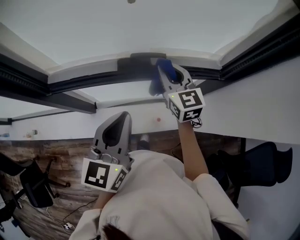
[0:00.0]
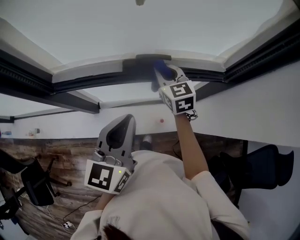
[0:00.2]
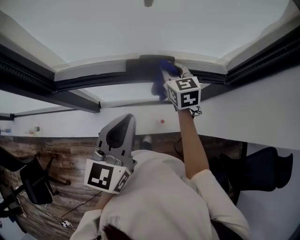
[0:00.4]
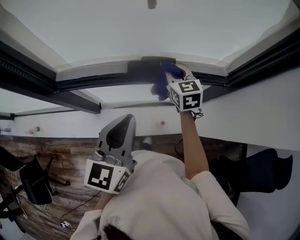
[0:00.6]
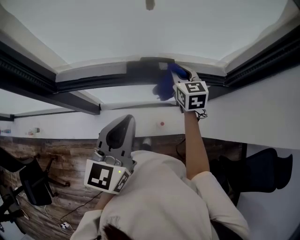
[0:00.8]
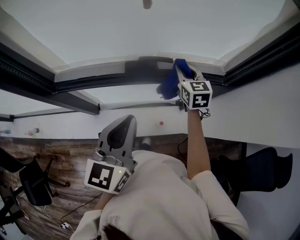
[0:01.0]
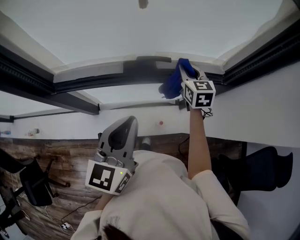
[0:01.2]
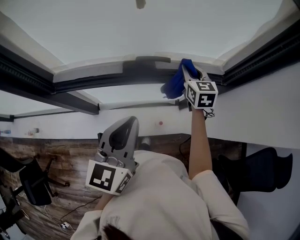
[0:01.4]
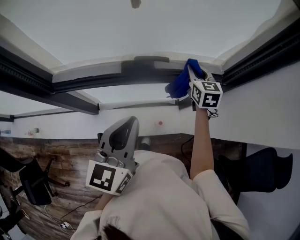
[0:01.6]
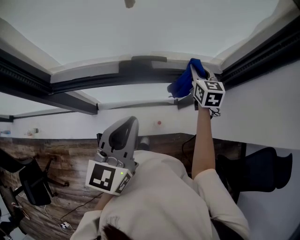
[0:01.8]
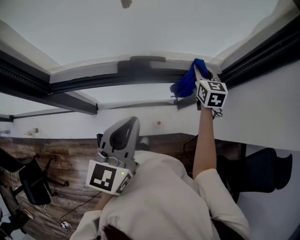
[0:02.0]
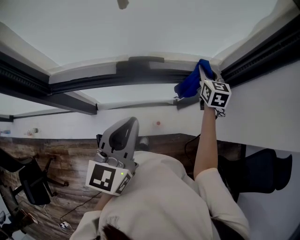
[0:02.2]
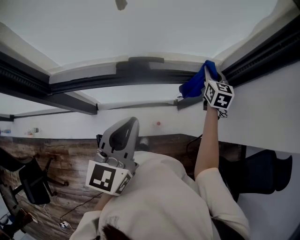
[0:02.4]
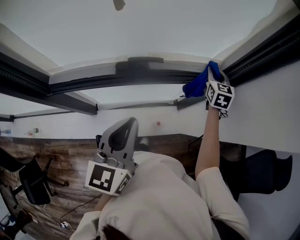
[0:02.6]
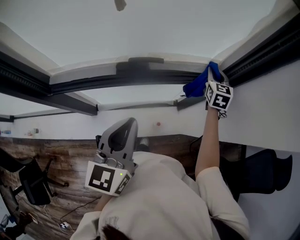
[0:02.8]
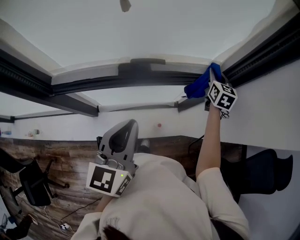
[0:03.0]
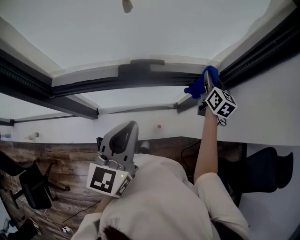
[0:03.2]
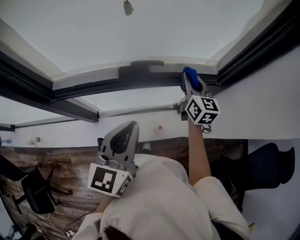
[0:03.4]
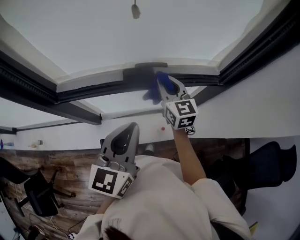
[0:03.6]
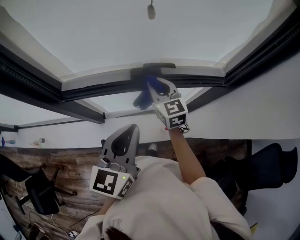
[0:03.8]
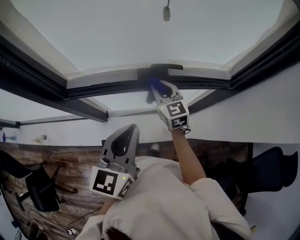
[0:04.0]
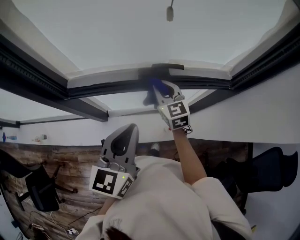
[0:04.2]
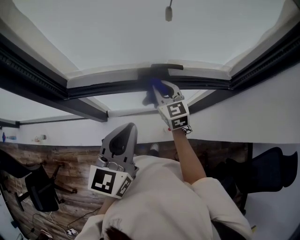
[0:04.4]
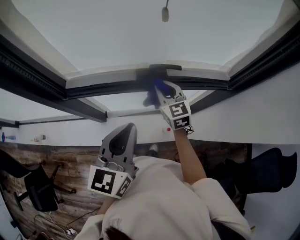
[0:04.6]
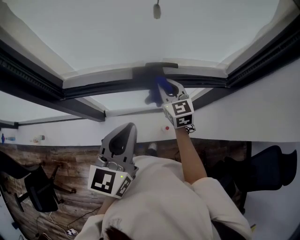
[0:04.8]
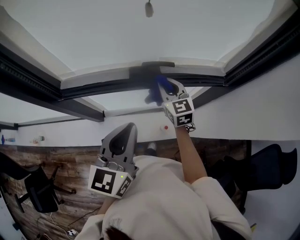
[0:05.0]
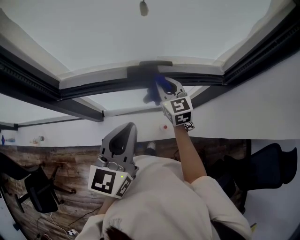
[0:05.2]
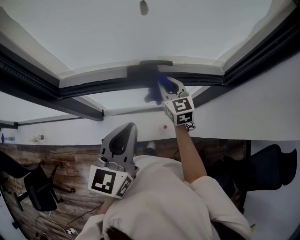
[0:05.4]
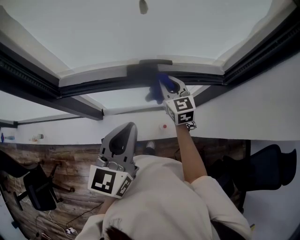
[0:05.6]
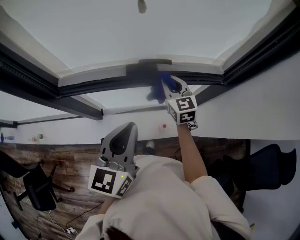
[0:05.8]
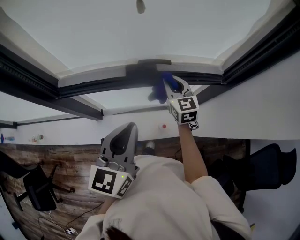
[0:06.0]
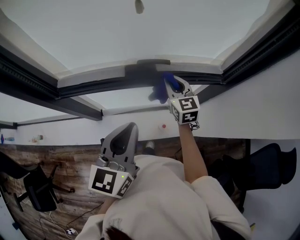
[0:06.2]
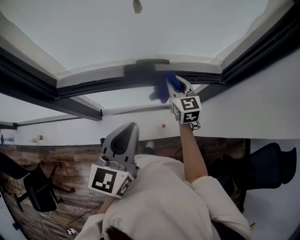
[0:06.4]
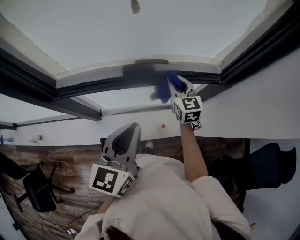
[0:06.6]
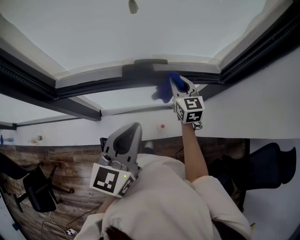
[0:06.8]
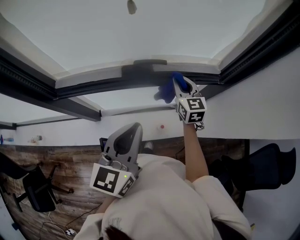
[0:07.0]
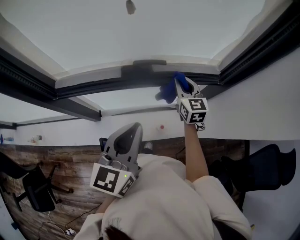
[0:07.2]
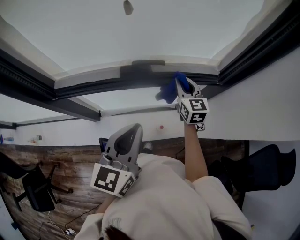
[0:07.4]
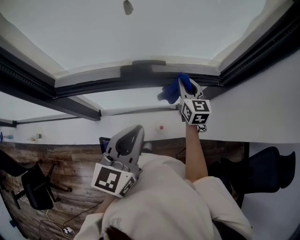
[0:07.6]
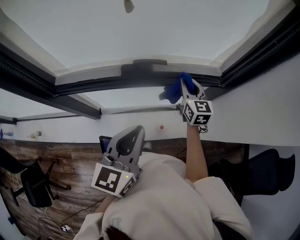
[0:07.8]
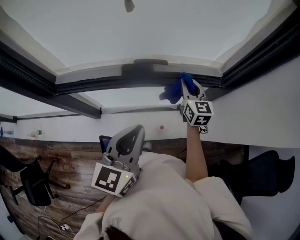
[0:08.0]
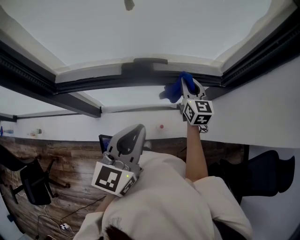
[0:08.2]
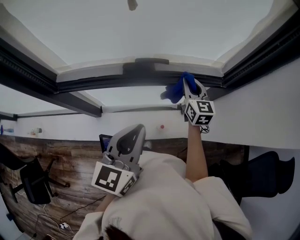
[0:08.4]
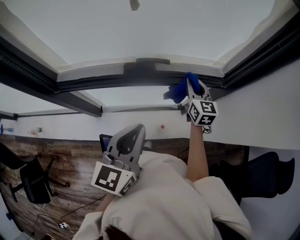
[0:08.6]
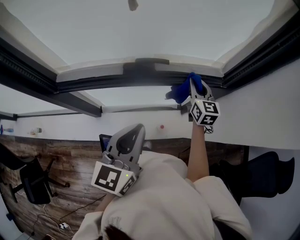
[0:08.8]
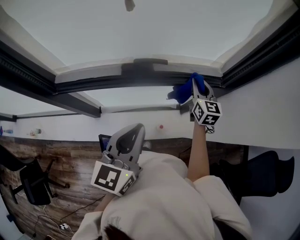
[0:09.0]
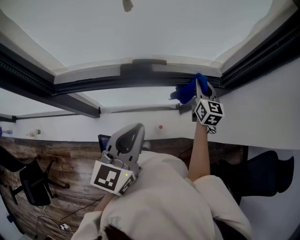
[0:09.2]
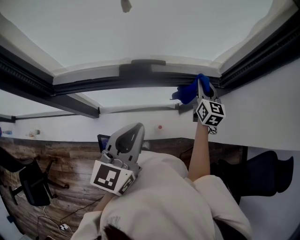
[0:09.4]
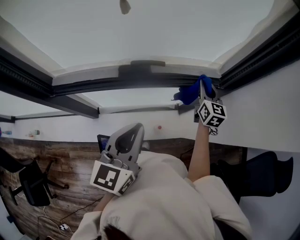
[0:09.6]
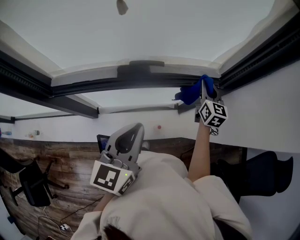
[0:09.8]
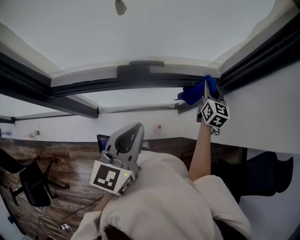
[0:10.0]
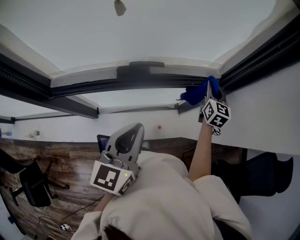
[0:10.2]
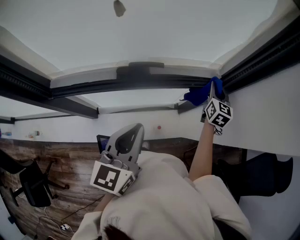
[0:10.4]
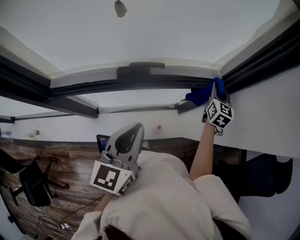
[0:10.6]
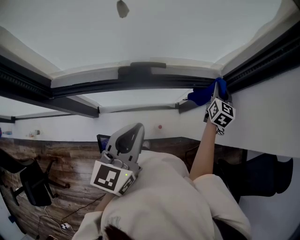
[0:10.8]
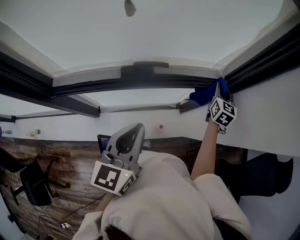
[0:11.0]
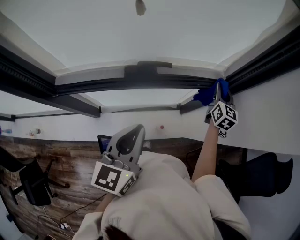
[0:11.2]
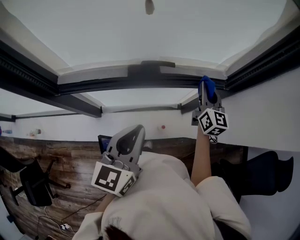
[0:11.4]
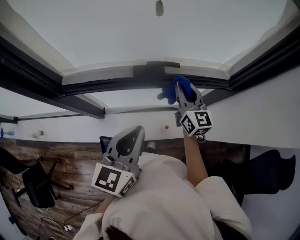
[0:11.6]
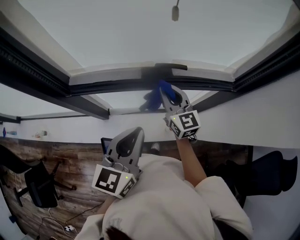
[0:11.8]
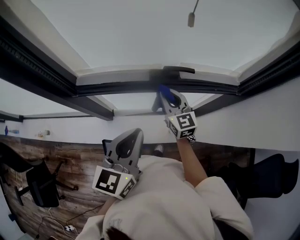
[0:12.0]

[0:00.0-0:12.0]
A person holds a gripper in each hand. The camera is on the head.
0:00.0 to 0:01.6: The right gripper goes about 15 cm to the right and forward.
0:01.6 to 0:03.0: The right gripper goes about 10 cm to the right.
0:03.0 to 0:04.4: The left gripper heads to the left, covering about 10 cm. The right gripper heads to the left, covering approximately 30 cm, and turns by approximately 30 degrees.
0:04.4 to 0:06.0: The right gripper travels to the right by approximately 10 cm.
0:06.0 to 0:07.6: The right gripper travels to the right by approximately 10 cm.
0:07.6 to 0:09.0: The right gripper moves to the right, some 5 cm.
0:09.0 to 0:10.4: The right gripper is displaced to the right by approximately 10 cm.
0:10.4 to 0:12.0: The left gripper moves to the left, roughly 10 cm, while the right gripper is displaced to the left by approximately 35 cm, and changes its angle by roughly 40 degrees.

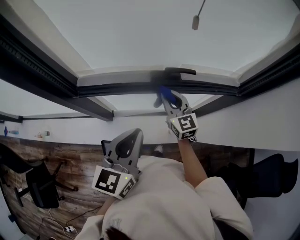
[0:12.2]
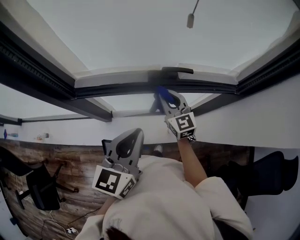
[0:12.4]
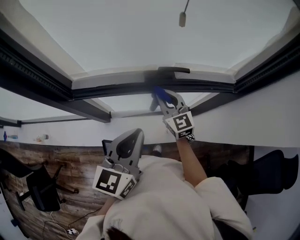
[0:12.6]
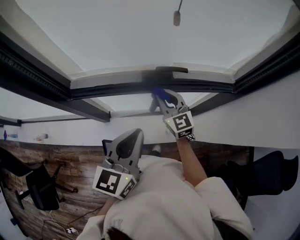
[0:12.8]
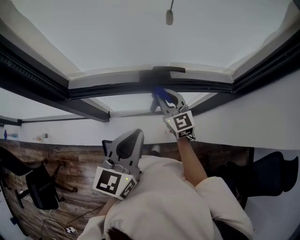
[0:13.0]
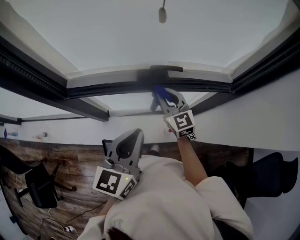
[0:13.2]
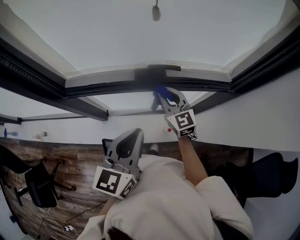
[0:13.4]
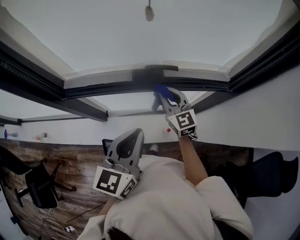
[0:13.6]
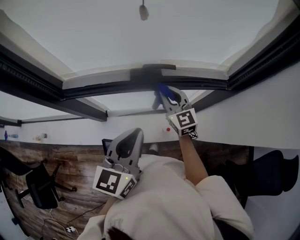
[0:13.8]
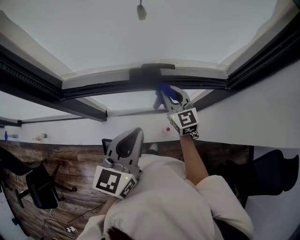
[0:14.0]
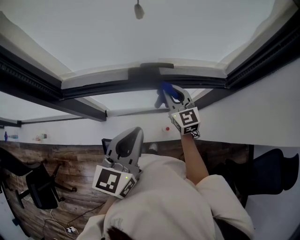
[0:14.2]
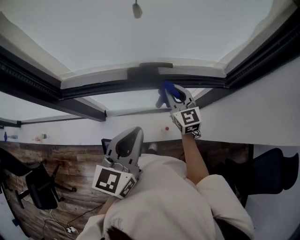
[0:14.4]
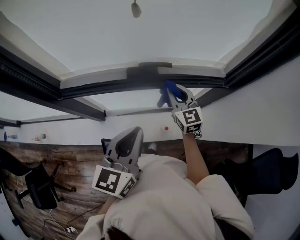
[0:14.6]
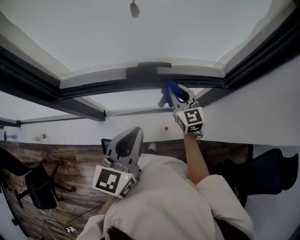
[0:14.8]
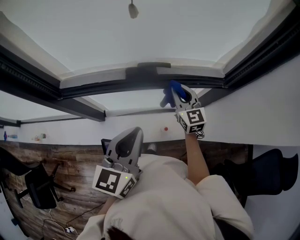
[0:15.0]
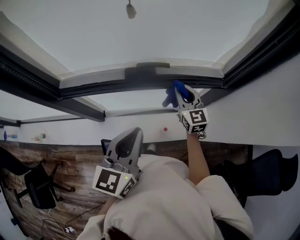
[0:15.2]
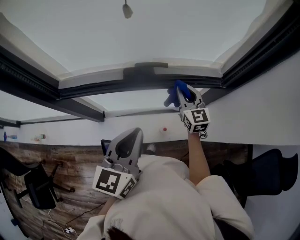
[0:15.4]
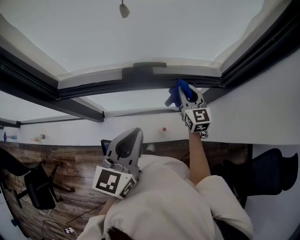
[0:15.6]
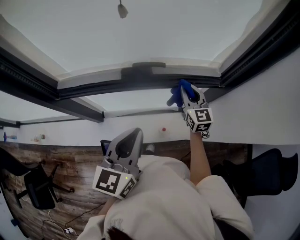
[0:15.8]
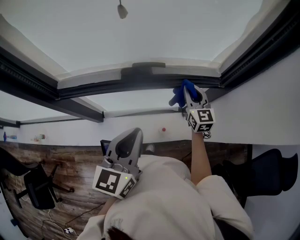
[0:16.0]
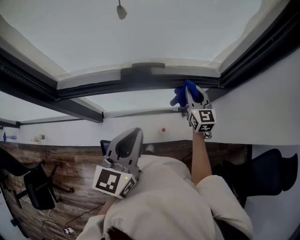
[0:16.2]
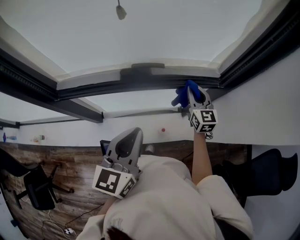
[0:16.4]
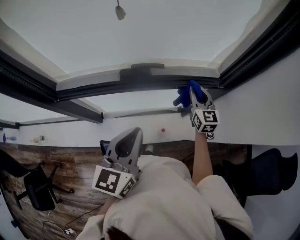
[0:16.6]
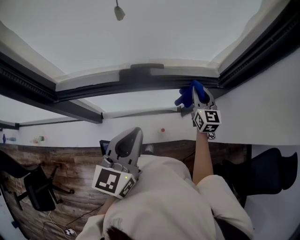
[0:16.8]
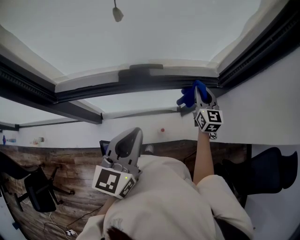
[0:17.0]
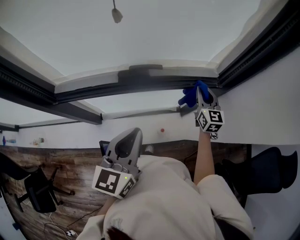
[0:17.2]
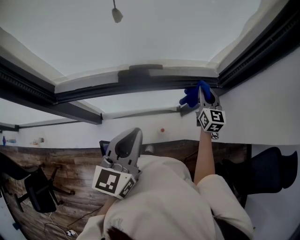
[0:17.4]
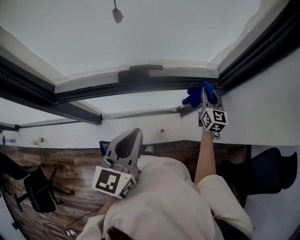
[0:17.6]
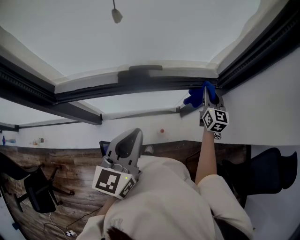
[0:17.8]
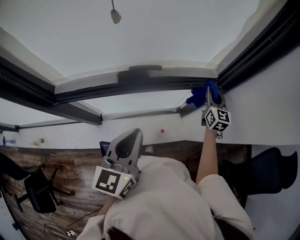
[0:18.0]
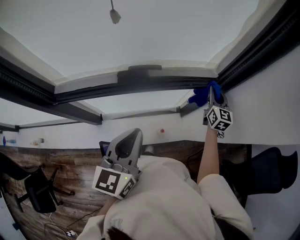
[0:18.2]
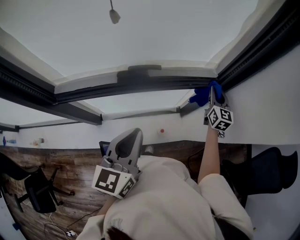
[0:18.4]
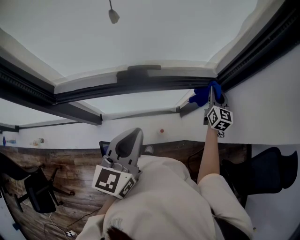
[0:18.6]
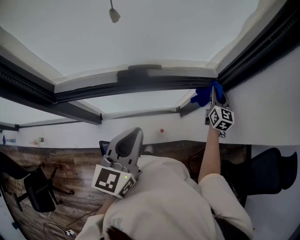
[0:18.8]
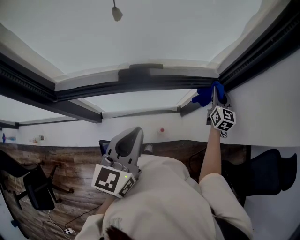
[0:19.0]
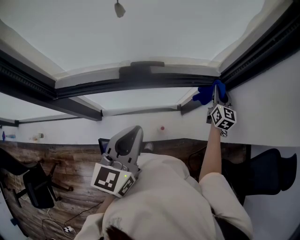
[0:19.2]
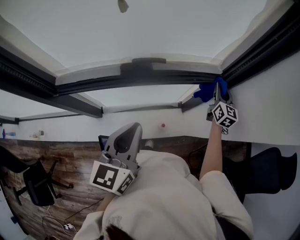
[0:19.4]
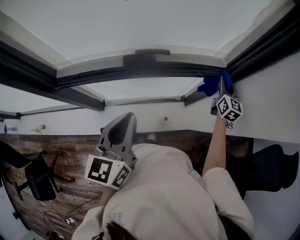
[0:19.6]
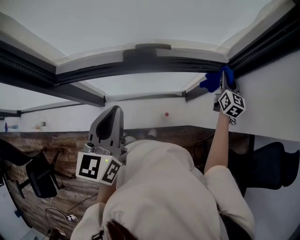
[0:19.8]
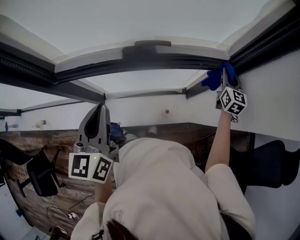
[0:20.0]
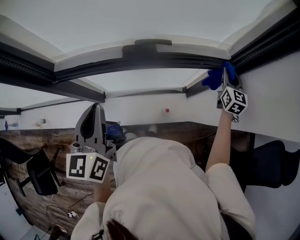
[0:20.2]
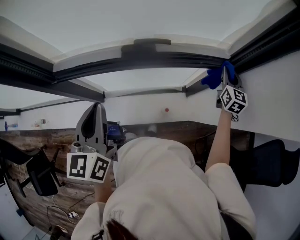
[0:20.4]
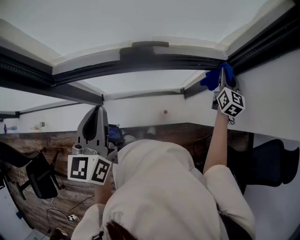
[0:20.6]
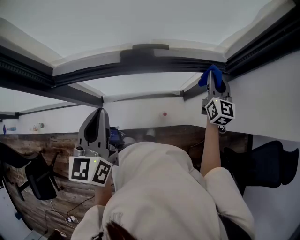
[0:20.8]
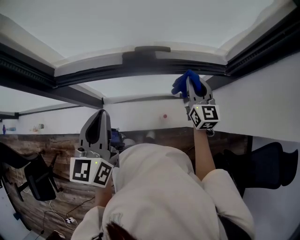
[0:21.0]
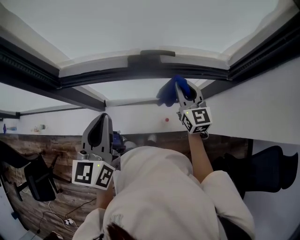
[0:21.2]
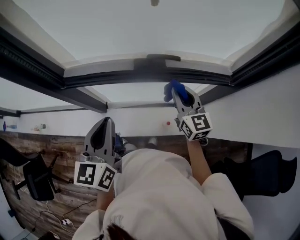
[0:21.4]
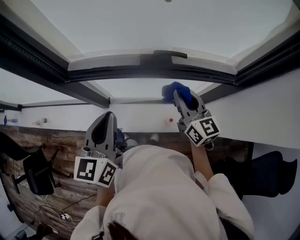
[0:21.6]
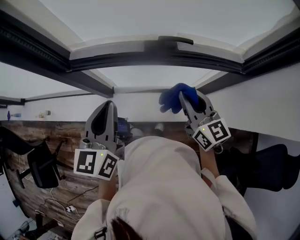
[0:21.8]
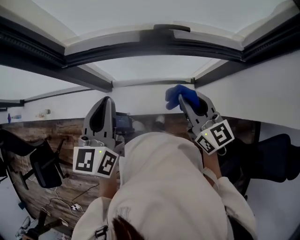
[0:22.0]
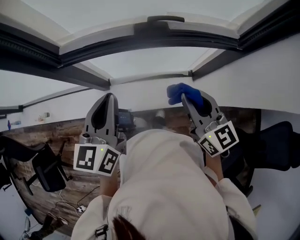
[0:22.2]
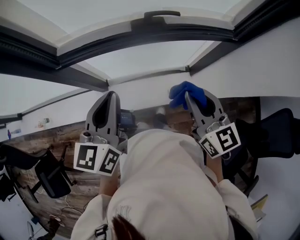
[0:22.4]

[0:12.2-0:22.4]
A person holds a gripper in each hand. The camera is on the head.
0:12.2 to 0:13.6: Both grippers travel together to the right, approximately 5 cm.
0:13.6 to 0:15.2: The right gripper travels to the right by roughly 10 cm.
0:15.2 to 0:16.6: The right gripper goes about 10 cm to the right.
0:16.6 to 0:18.0: The right gripper moves to the right, roughly 10 cm.
0:18.0 to 0:19.4: The grippers make only small movements.
0:19.4 to 0:21.0: The left gripper is displaced to the left by approximately 10 cm. The right gripper is displaced to the left by about 15 cm.
0:21.0 to 0:22.4: The left gripper changes place by approximately 5 cm; the right gripper shifts approximately 25 cm backward and to the left.

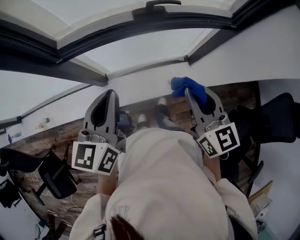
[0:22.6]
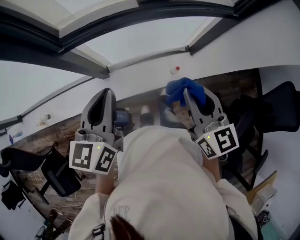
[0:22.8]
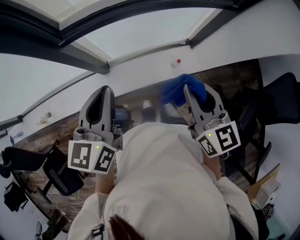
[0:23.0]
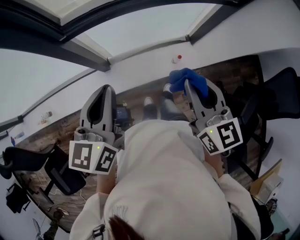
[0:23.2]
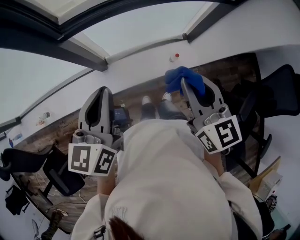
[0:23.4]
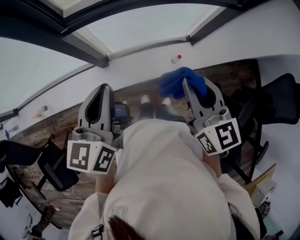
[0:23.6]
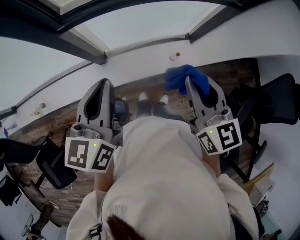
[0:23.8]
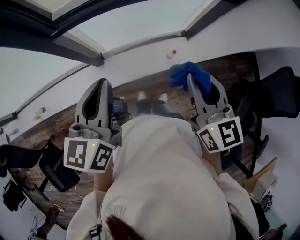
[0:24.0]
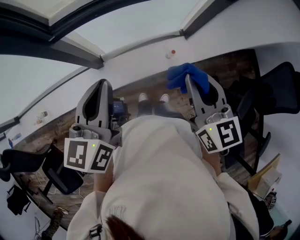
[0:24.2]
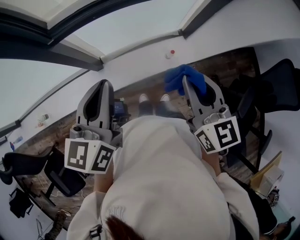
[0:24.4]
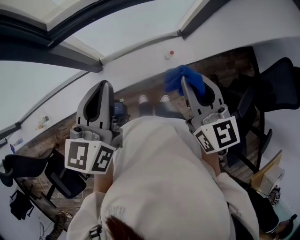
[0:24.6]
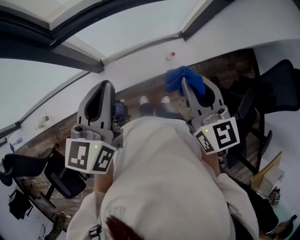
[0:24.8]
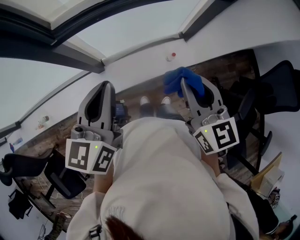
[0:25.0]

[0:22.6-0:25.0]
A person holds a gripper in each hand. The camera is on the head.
0:22.6 to 0:23.8: The grippers both shift backward and to the left by some 10 cm.
0:23.8 to 0:25.0: The grippers move only a little.
